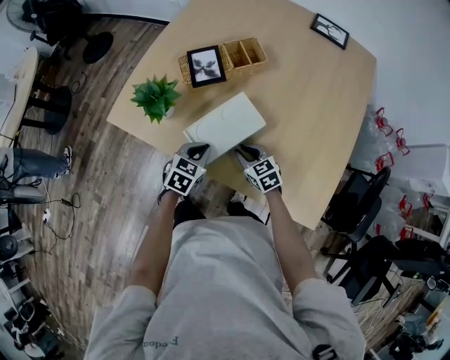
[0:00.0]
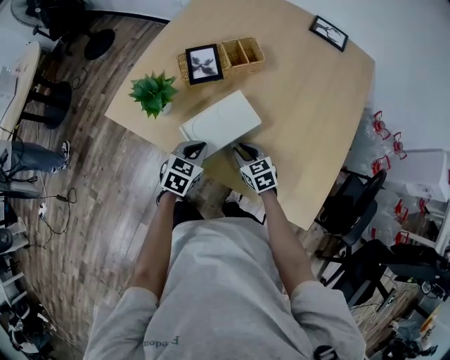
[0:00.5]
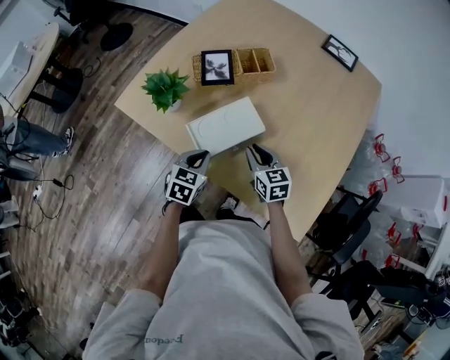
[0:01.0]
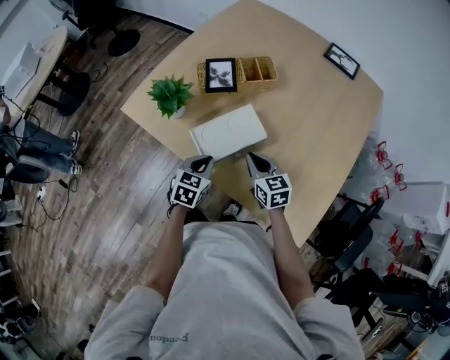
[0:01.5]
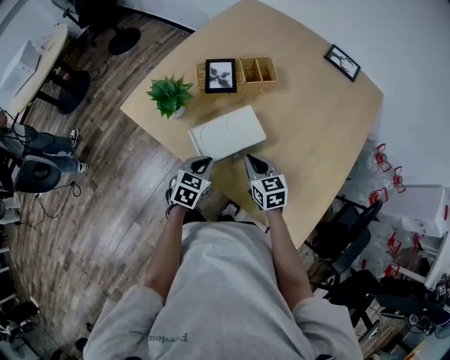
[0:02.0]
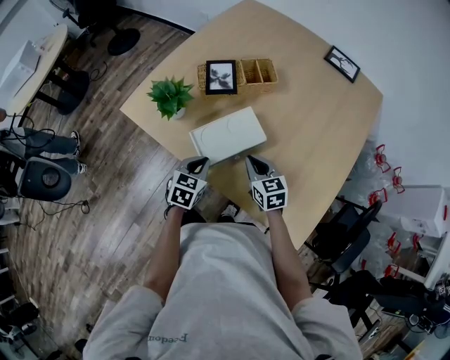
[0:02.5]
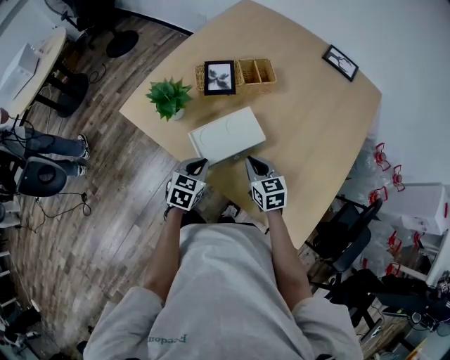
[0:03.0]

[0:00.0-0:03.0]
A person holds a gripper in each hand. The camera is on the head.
0:00.0 to 0:01.5: The right gripper heads upward, covering about 10 cm.
0:01.5 to 0:03.0: The grippers make only small movements.

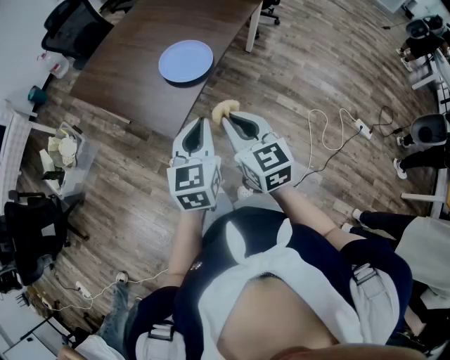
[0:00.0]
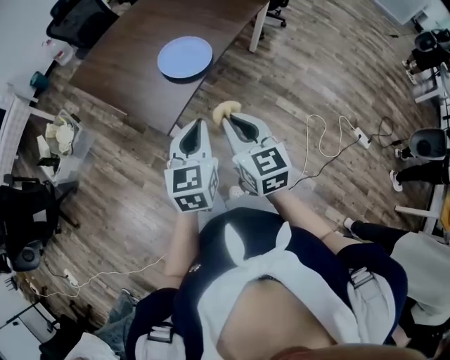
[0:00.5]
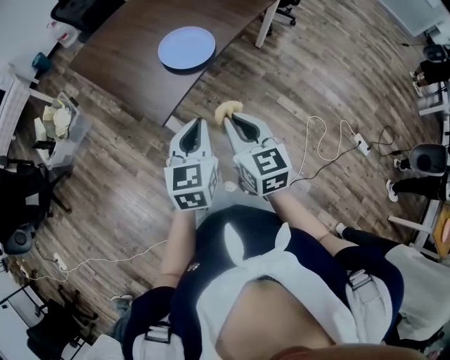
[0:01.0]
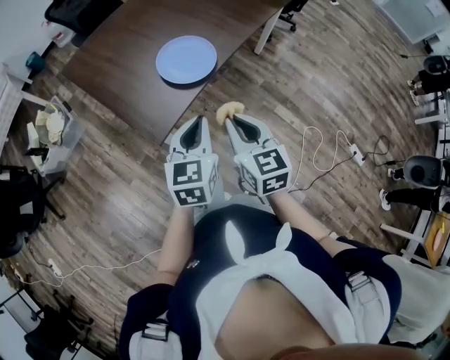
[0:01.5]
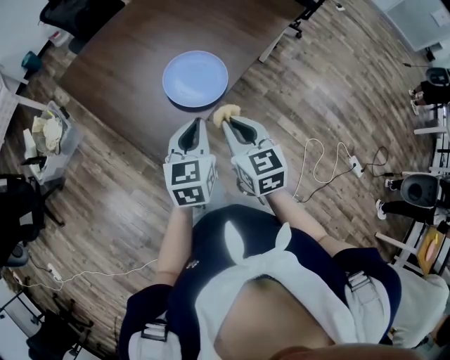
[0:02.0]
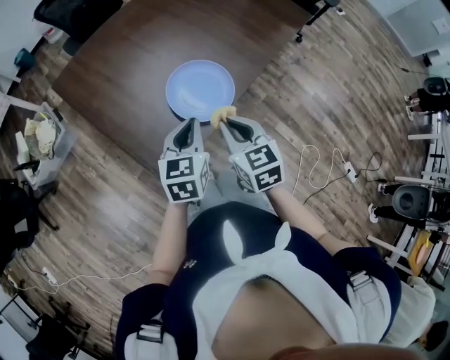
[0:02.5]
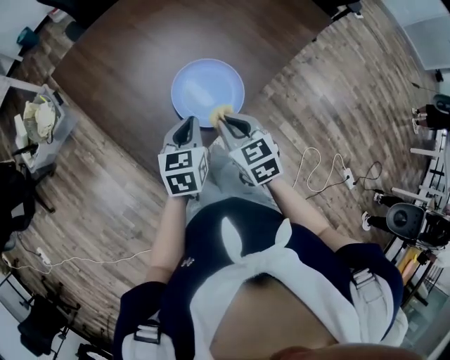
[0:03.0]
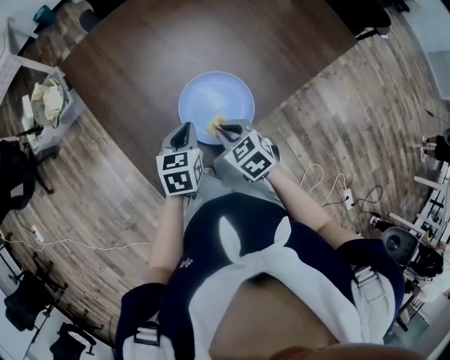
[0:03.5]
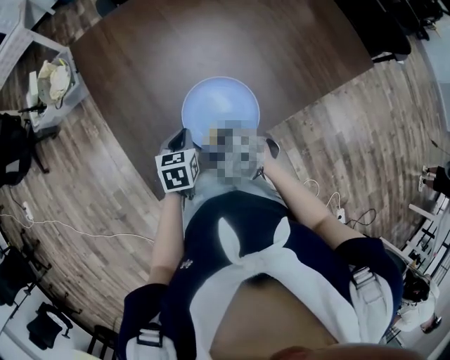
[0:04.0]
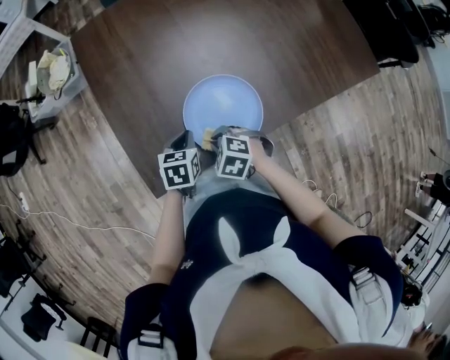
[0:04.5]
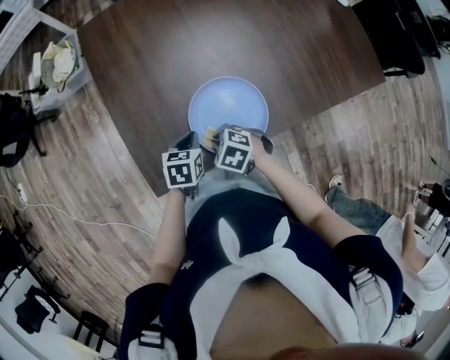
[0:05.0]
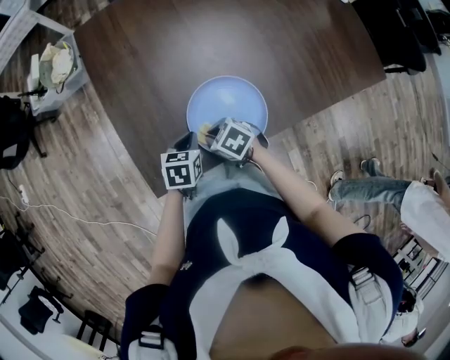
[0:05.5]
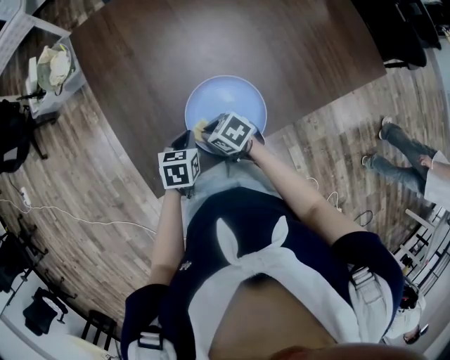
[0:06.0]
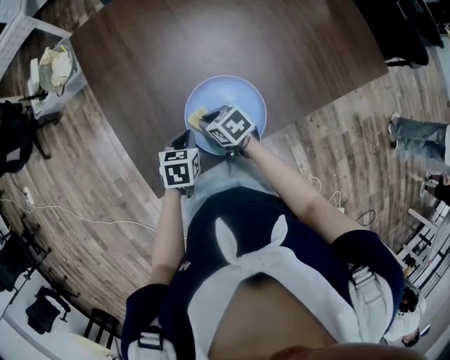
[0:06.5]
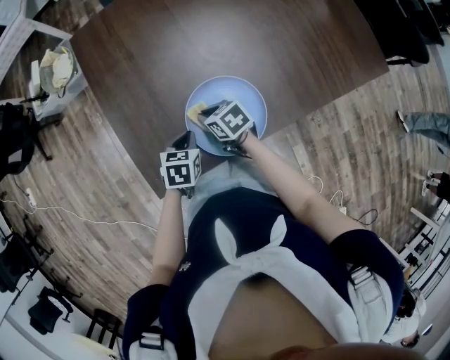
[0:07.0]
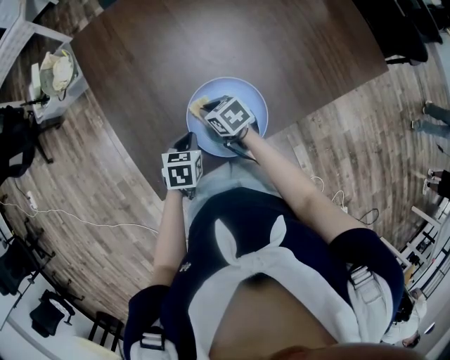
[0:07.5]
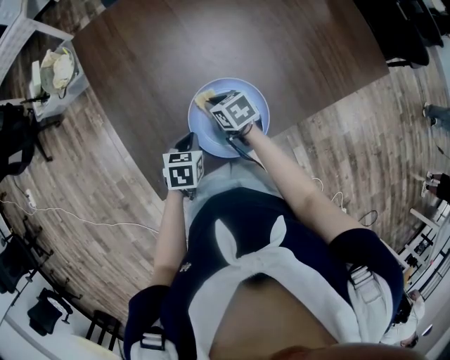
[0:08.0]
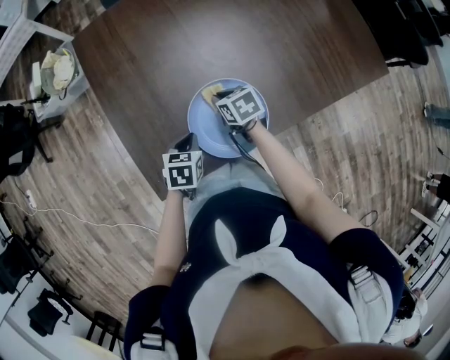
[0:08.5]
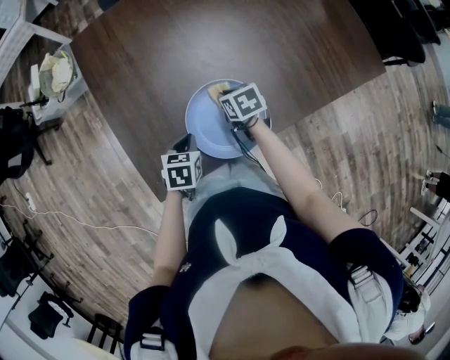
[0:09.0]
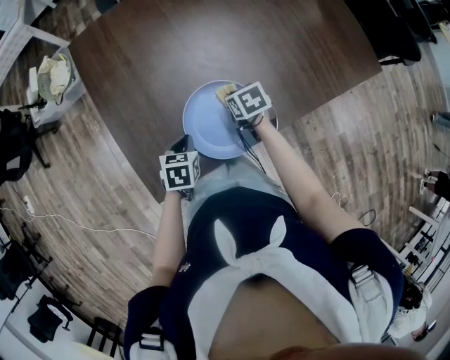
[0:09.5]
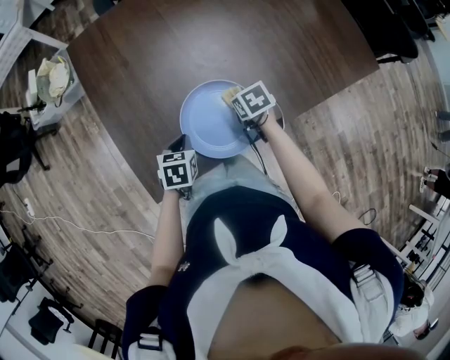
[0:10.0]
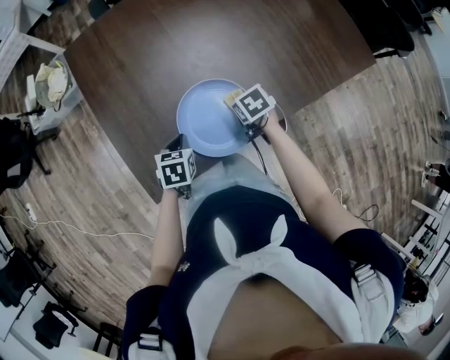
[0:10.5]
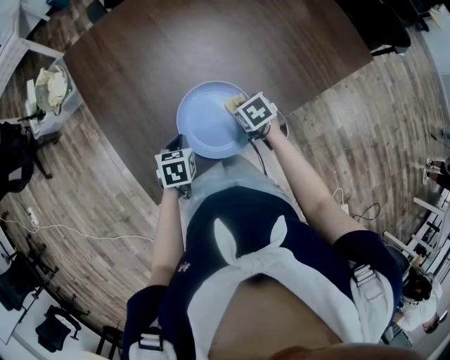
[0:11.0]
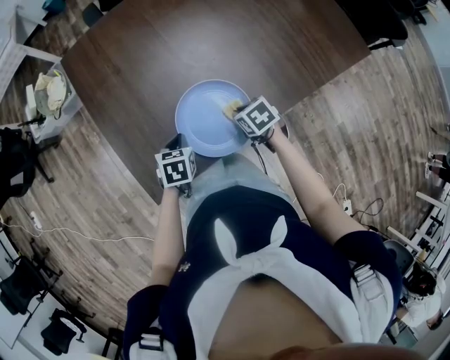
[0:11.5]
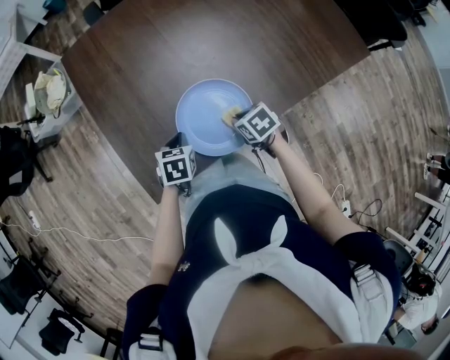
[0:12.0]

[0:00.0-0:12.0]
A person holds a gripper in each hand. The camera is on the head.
0:00.0 to 0:02.0: The grippers both shift forward by approximately 25 cm.
0:02.0 to 0:04.0: The left gripper shifts by about 30 cm, and turns by approximately 30 degrees, while the right gripper moves roughly 30 cm, and tilts its fingers approximately 40 degrees downward.
0:04.0 to 0:06.0: The right gripper is displaced forward and downward by roughly 10 cm, and rotates about 30 degrees.
0:06.0 to 0:08.0: The right gripper shifts some 10 cm forward and to the right, and turns by approximately 20 degrees.
0:08.0 to 0:10.0: The right gripper shifts some 10 cm to the right.
0:10.0 to 0:12.0: The right gripper goes roughly 10 cm backward.

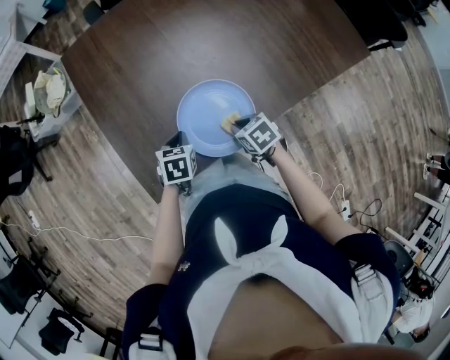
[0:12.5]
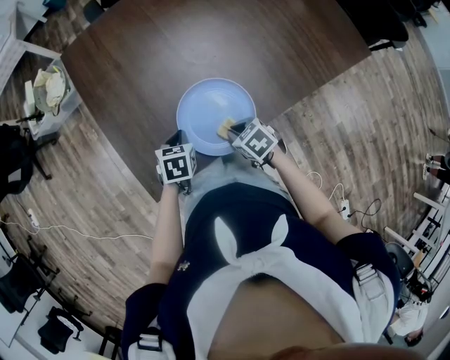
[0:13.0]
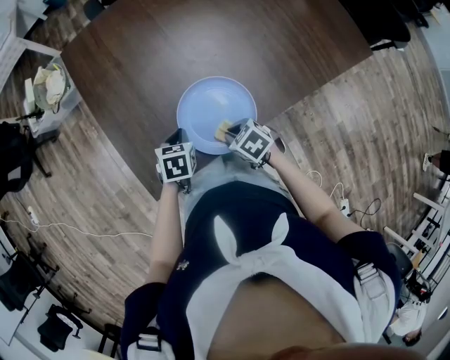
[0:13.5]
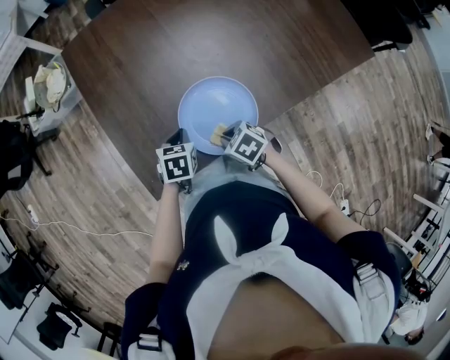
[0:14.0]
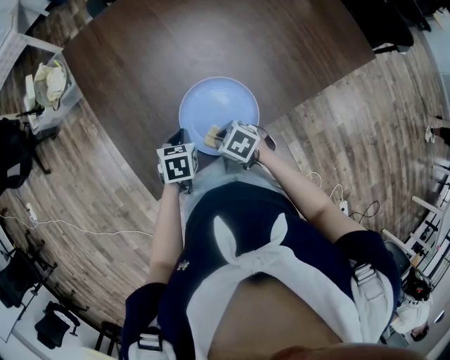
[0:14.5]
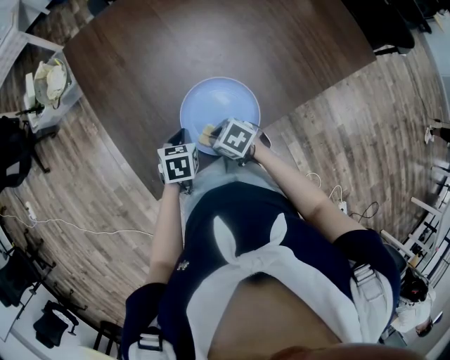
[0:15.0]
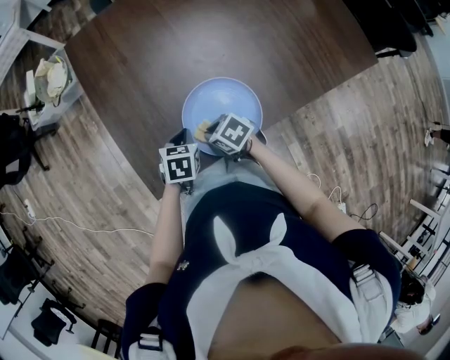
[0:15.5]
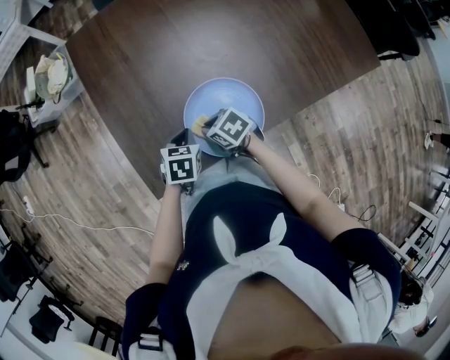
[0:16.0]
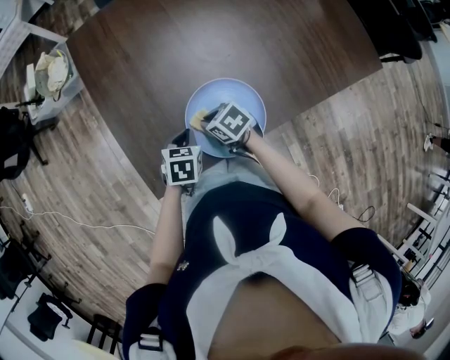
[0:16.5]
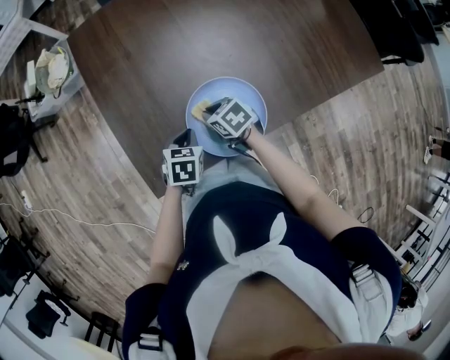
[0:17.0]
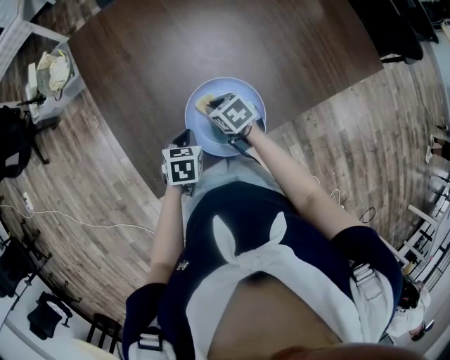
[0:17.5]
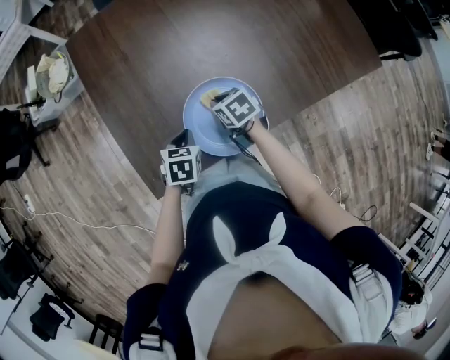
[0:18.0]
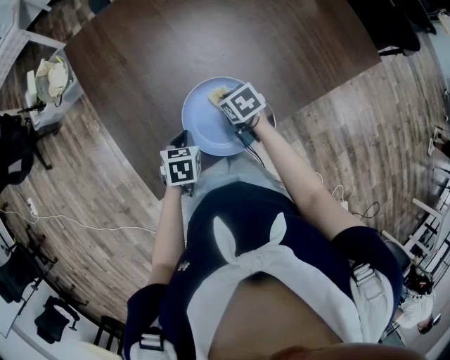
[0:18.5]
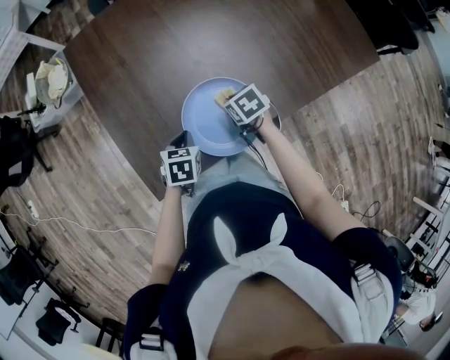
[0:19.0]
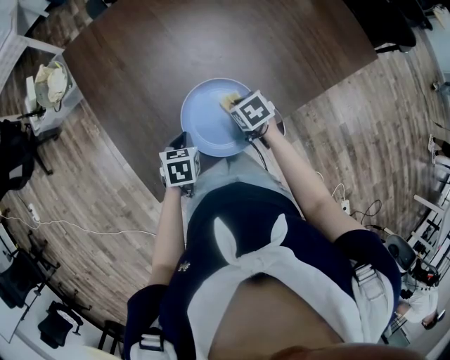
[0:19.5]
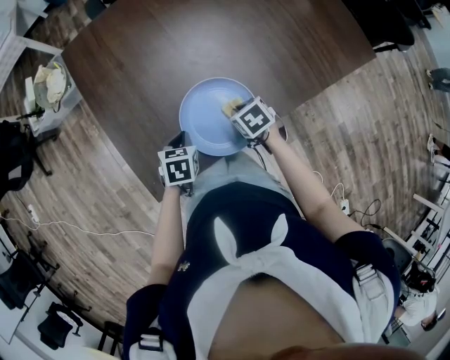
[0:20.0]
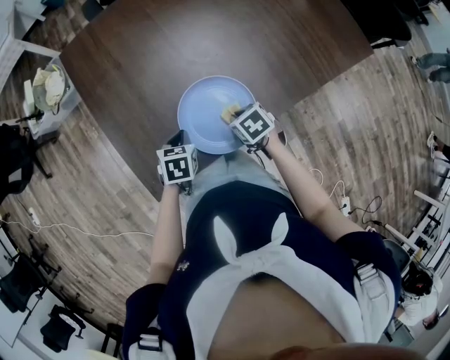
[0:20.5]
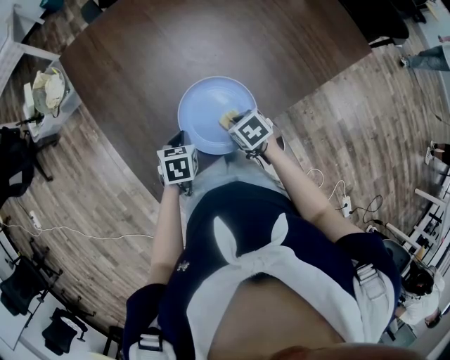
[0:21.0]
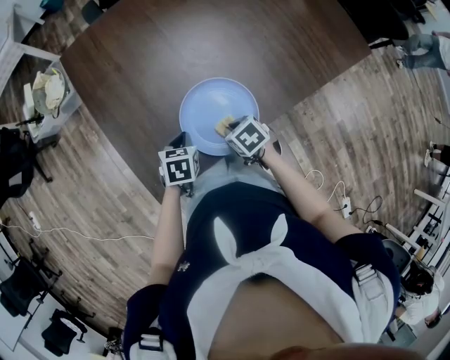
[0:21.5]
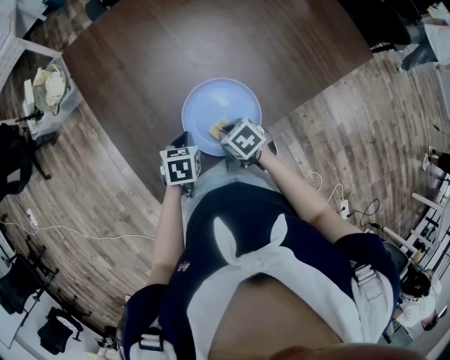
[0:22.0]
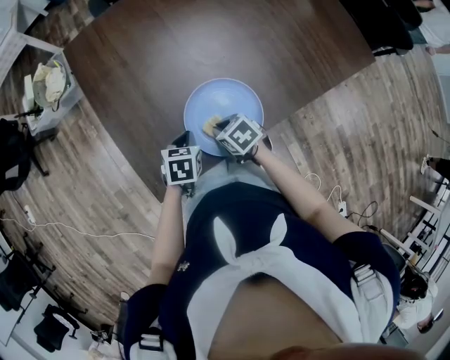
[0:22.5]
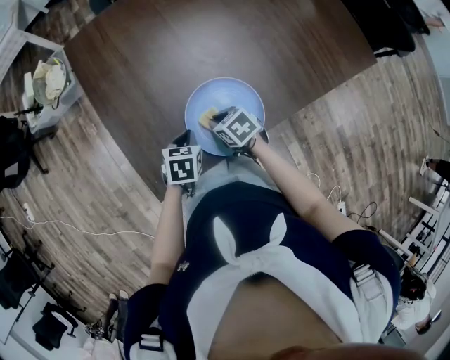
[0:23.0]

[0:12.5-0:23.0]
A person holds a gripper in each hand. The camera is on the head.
0:12.5 to 0:14.5: The right gripper travels to the left by about 10 cm, and swivels about 20 degrees.
0:14.5 to 0:16.5: The right gripper is displaced forward by some 10 cm.
0:16.5 to 0:19.0: The right gripper is displaced to the right by roughly 10 cm, and rotates approximately 20 degrees.
0:19.0 to 0:21.0: The right gripper heads backward, covering approximately 10 cm.
0:21.0 to 0:23.0: The right gripper is displaced to the left and forward by approximately 10 cm.

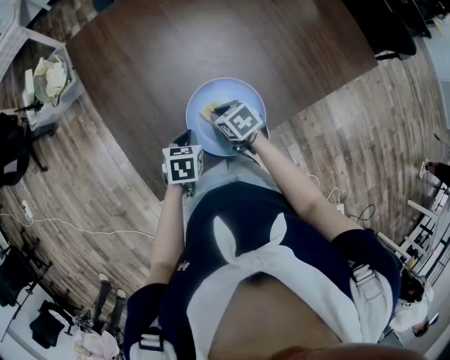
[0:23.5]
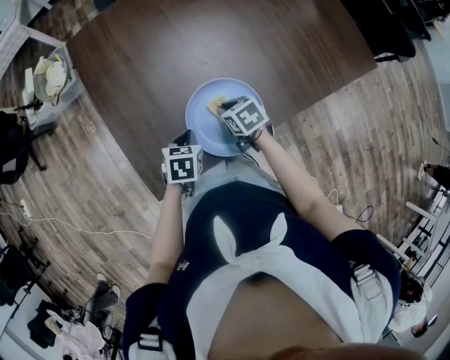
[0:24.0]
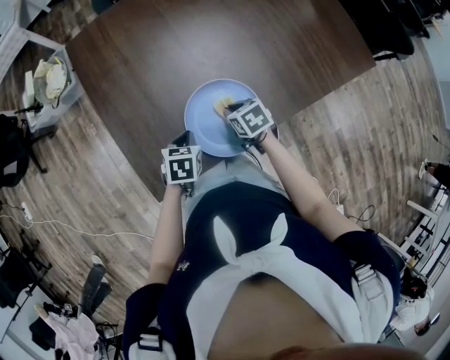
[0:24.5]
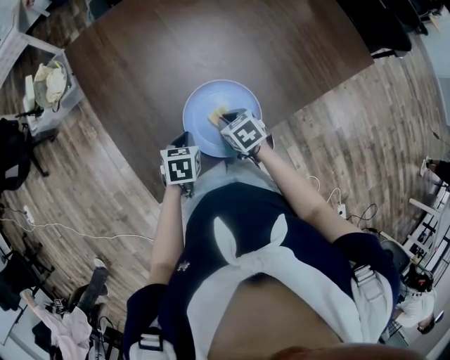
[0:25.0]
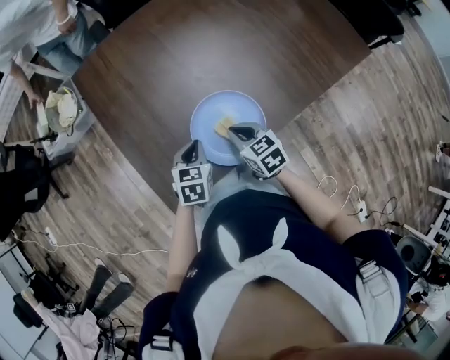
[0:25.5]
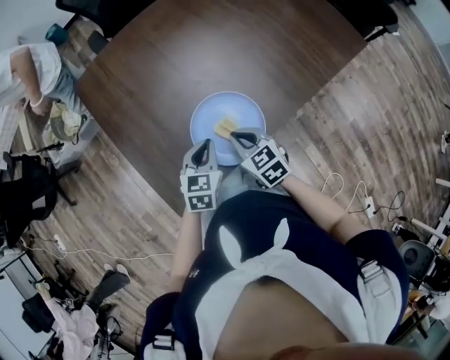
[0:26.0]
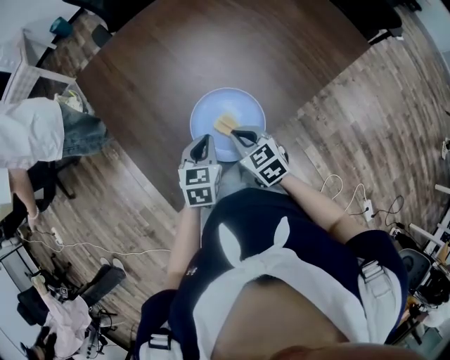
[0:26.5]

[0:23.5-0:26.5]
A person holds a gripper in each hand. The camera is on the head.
0:23.5 to 0:25.0: The grippers make only small movements.
0:25.0 to 0:26.5: The left gripper shifts roughly 10 cm upward and to the right, and swivels some 20 degrees; the right gripper is displaced upward and backward by about 10 cm, and rotates roughly 20 degrees.
